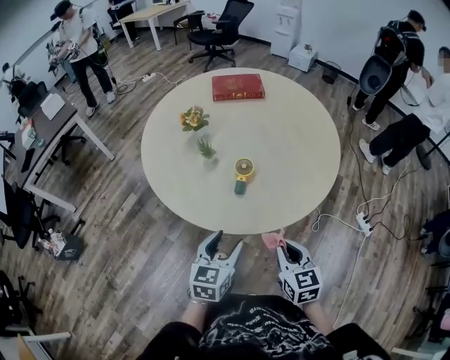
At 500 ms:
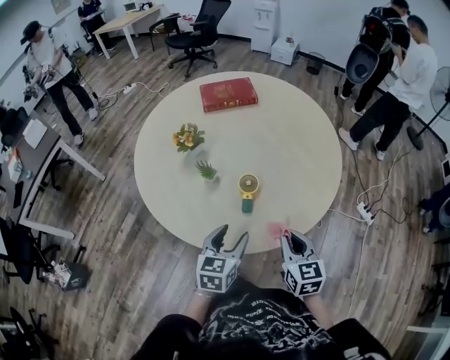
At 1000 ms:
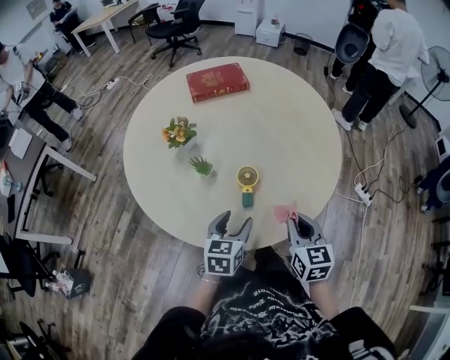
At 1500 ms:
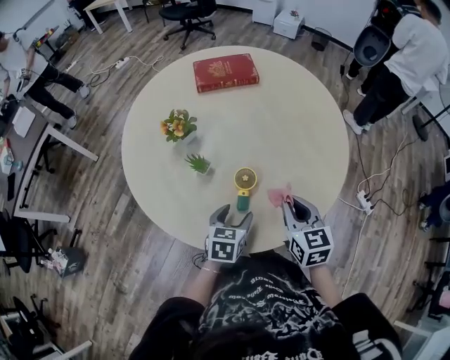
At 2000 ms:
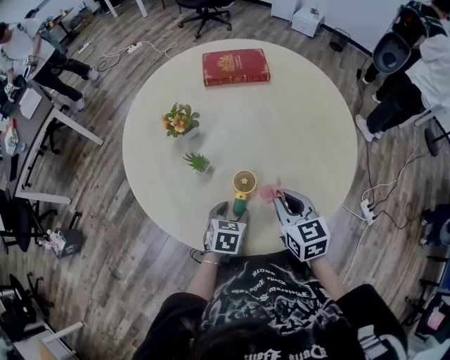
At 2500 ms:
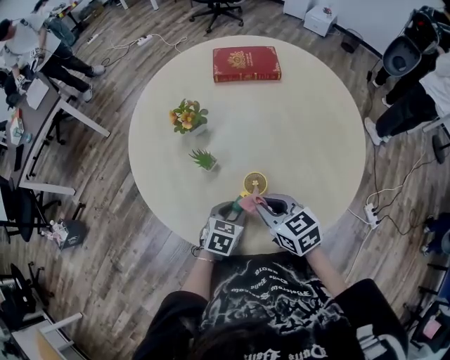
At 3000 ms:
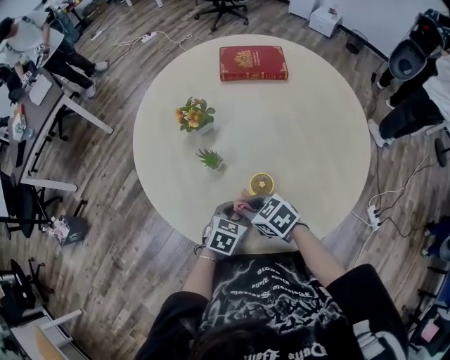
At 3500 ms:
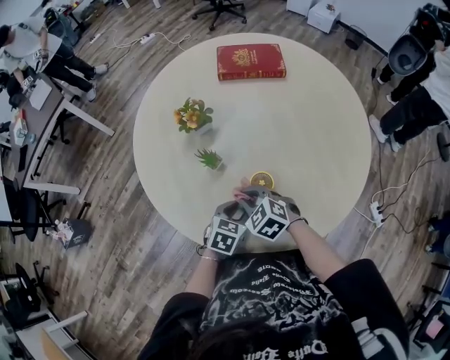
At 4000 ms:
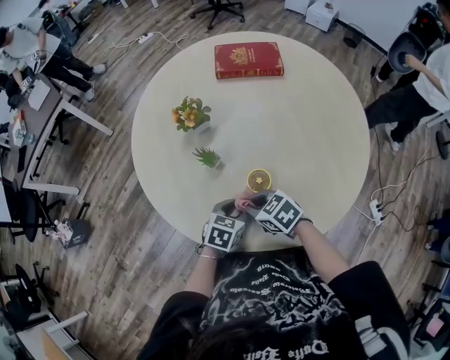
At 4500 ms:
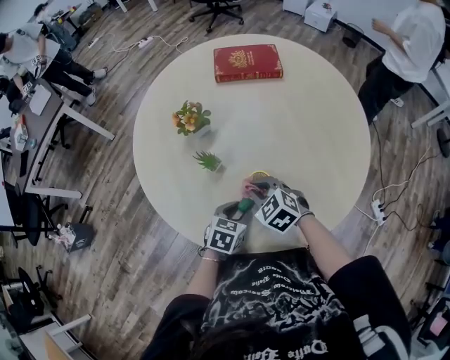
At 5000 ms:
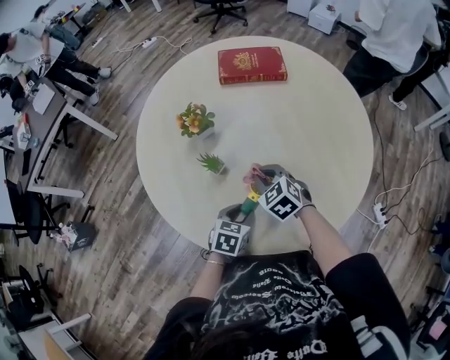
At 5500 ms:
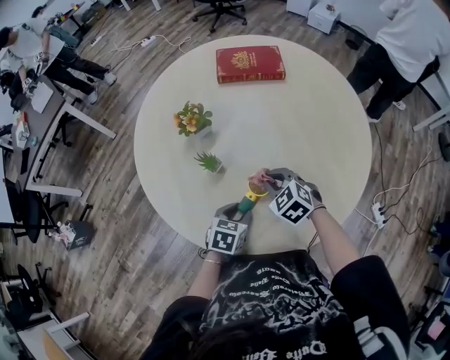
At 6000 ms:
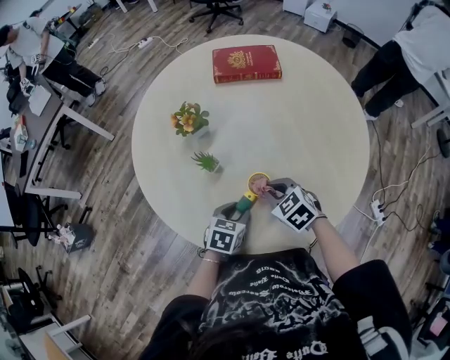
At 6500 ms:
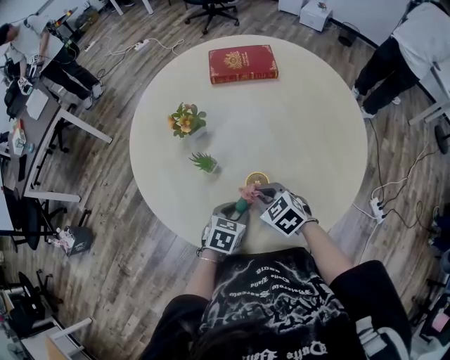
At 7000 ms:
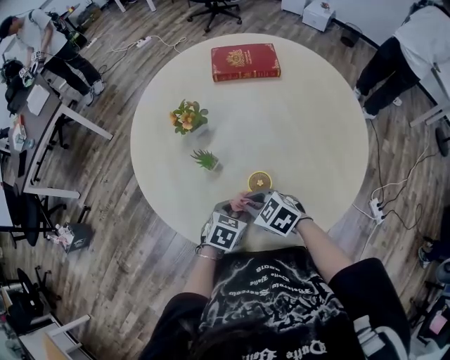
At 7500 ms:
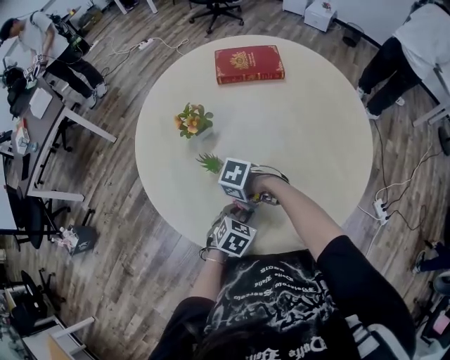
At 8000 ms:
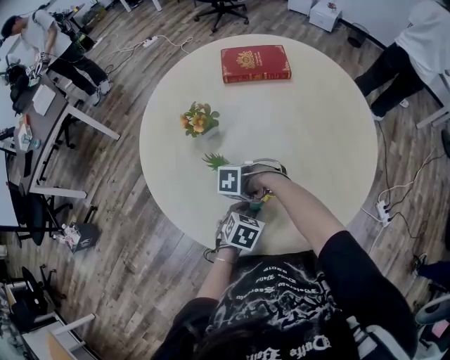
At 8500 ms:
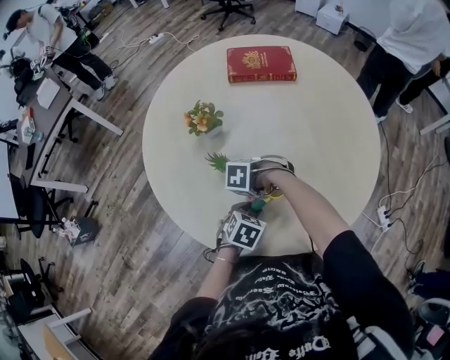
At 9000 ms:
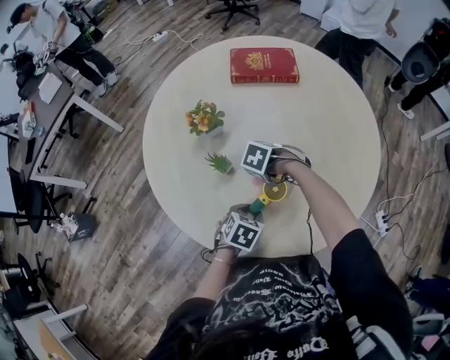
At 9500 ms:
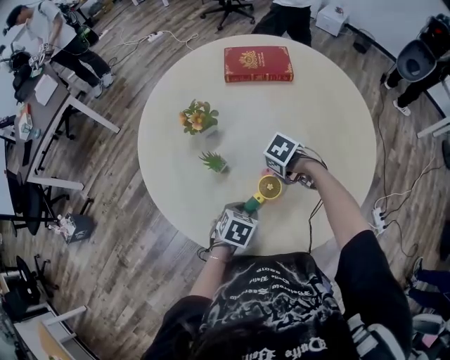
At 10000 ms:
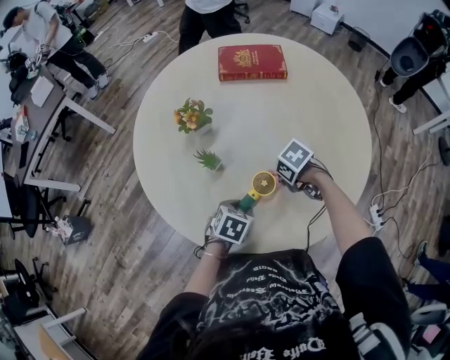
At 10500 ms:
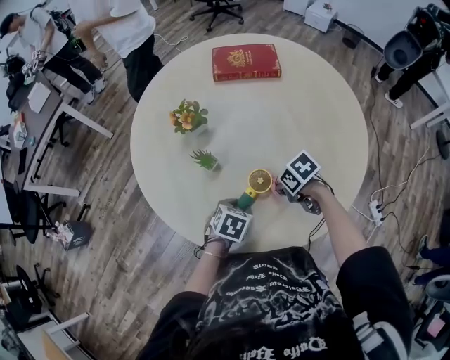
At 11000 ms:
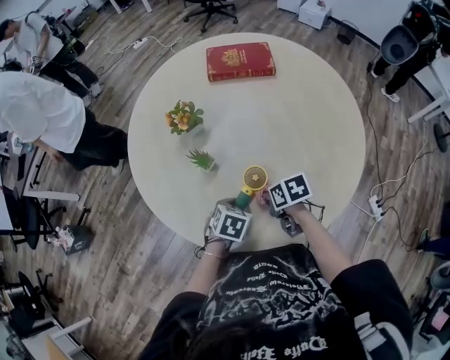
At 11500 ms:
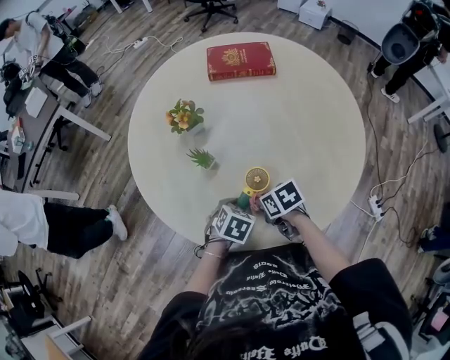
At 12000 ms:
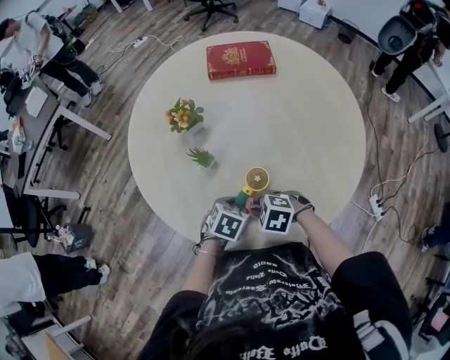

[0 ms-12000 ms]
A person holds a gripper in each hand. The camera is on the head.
0 ms to 2000 ms: The left gripper is displaced forward and downward by approximately 25 cm, and rotates about 30 degrees, while the right gripper is displaced forward by about 25 cm.
2000 ms to 4000 ms: The right gripper travels to the left and downward by some 15 cm, and changes its angle by about 40 degrees. The left gripper closes up.
4000 ms to 6000 ms: The right gripper shifts roughly 10 cm to the right.
6000 ms to 8000 ms: The right gripper shifts by some 10 cm, and rotates some 60 degrees.
8000 ms to 10000 ms: The right gripper moves about 15 cm, and changes its angle by some 40 degrees.
10000 ms to 12000 ms: The right gripper ends up about 15 cm from where it was, and changes its angle by about 40 degrees.

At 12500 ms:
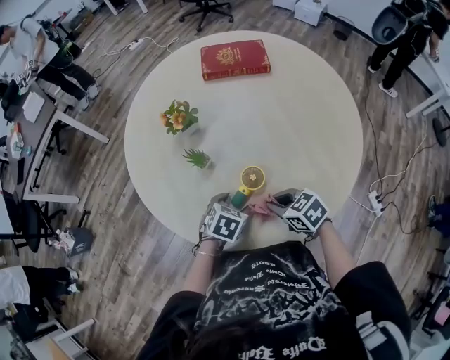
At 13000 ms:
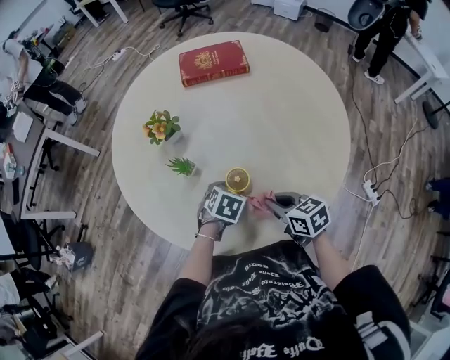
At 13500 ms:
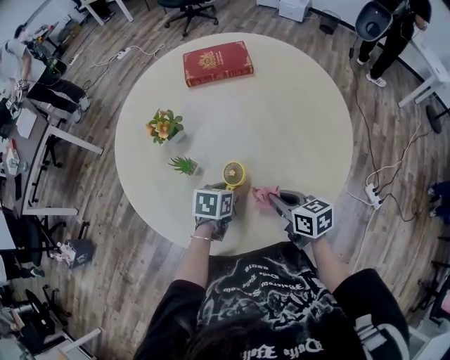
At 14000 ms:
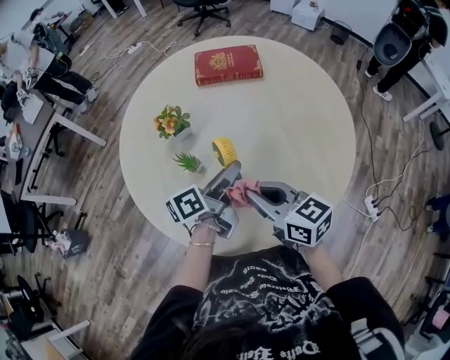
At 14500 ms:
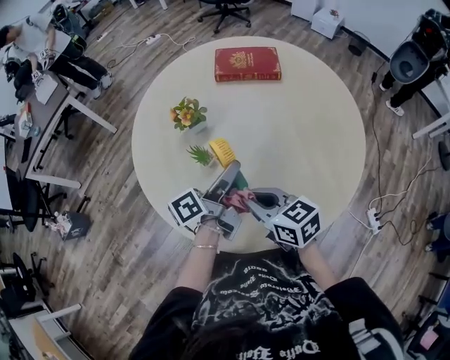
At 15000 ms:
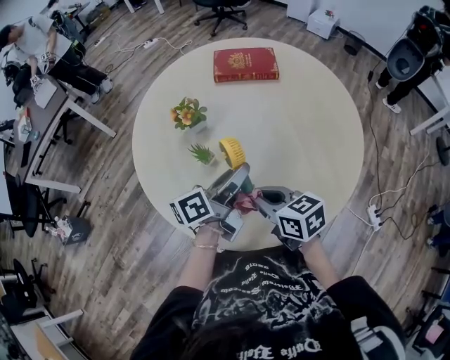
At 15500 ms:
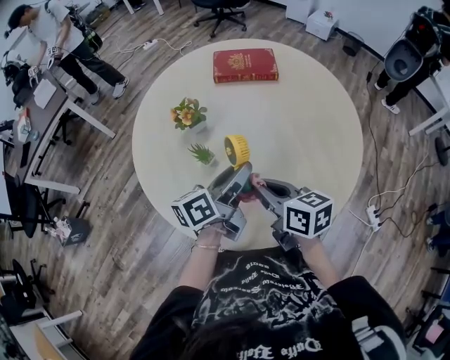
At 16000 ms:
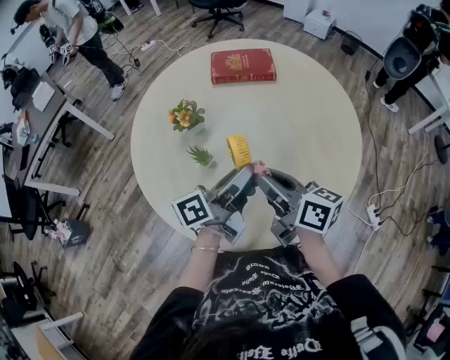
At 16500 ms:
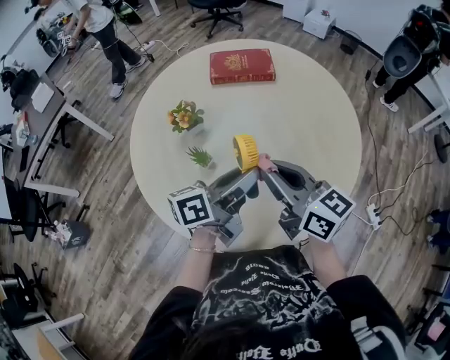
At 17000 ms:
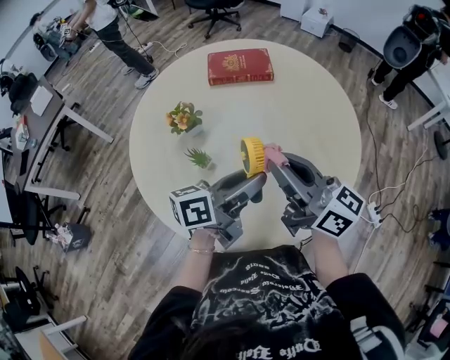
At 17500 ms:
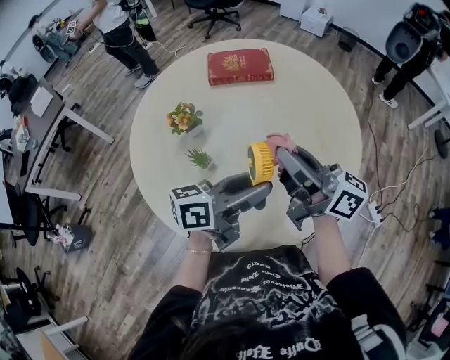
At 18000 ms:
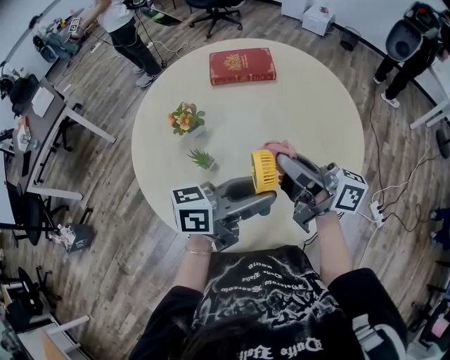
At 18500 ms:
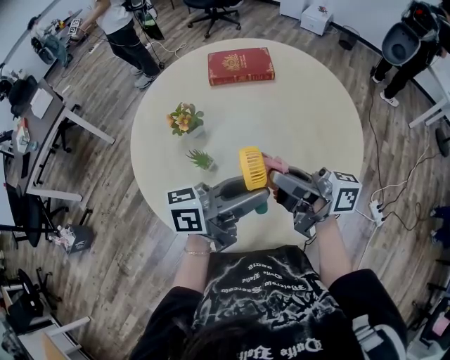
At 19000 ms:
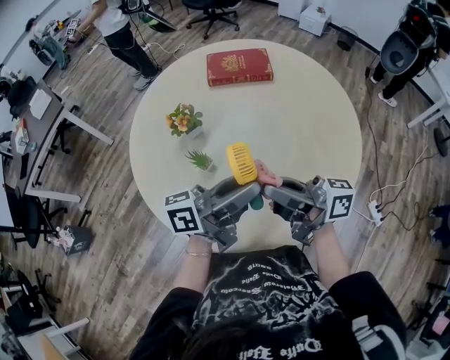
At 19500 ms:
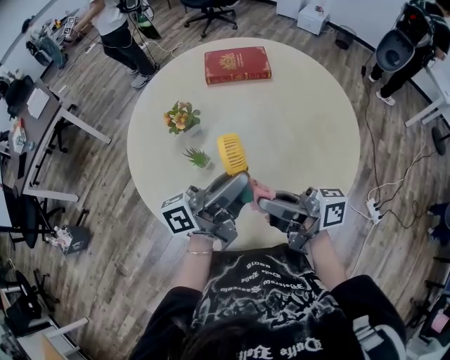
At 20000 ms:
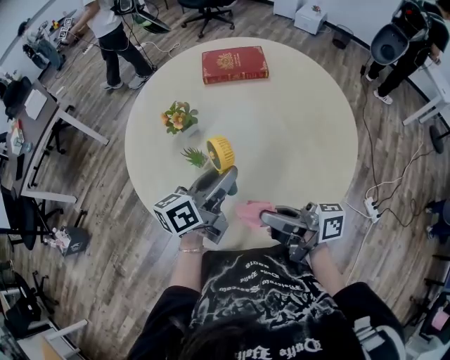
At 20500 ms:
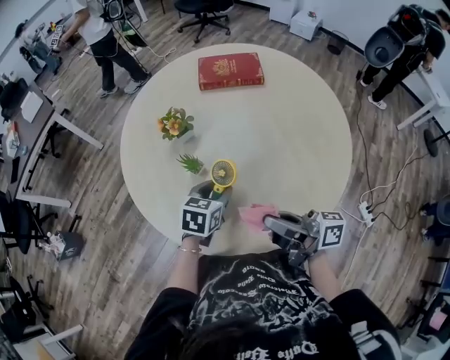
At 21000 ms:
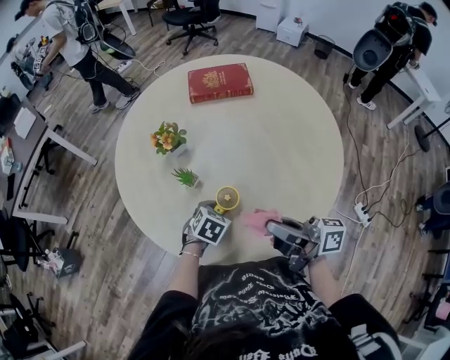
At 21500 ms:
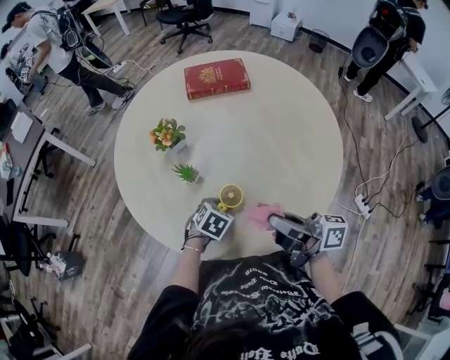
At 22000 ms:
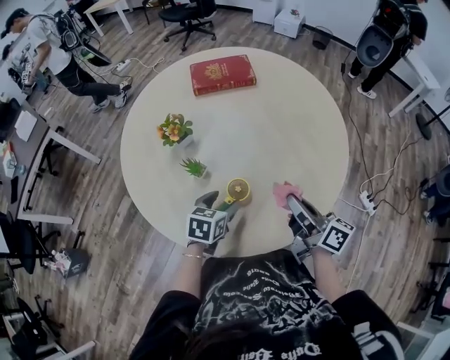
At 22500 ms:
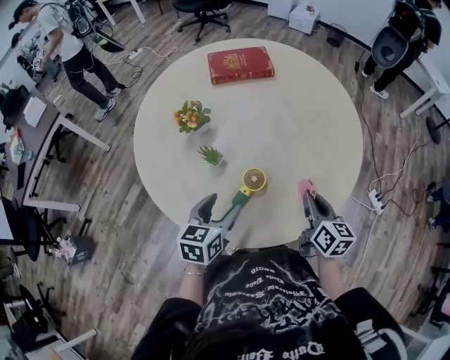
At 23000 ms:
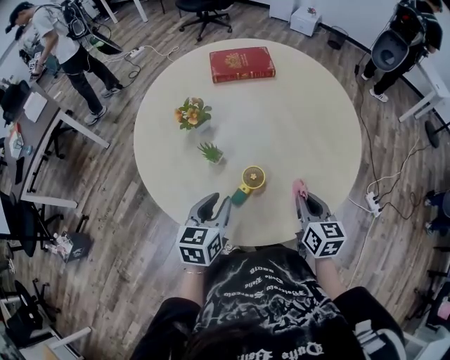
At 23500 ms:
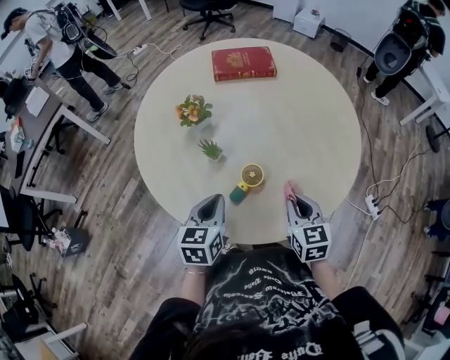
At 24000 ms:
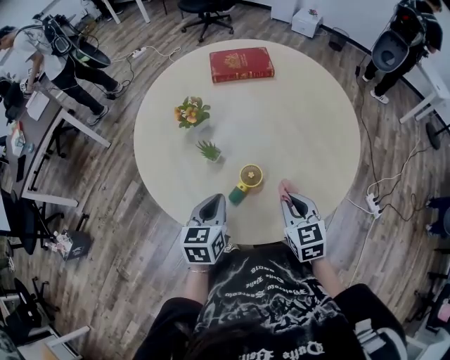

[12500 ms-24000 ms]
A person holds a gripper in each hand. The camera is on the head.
12500 ms to 14500 ms: The left gripper moves upward, approximately 20 cm, angles its fingers upward, by roughly 60 degrees, and closes its fingers. Meanwhile the right gripper shifts approximately 15 cm upward and to the left, and changes its angle by about 20 degrees.
14500 ms to 16500 ms: The left gripper changes place by approximately 5 cm, and changes its angle by approximately 30 degrees. Meanwhile the right gripper shifts approximately 10 cm upward, and rotates roughly 30 degrees.
16500 ms to 18500 ms: The left gripper ends up approximately 5 cm from where it was, and rotates roughly 20 degrees. The right gripper changes its angle by some 40 degrees.
18500 ms to 20000 ms: The left gripper moves roughly 10 cm, and swivels approximately 30 degrees. The right gripper changes place by roughly 10 cm.
20000 ms to 22000 ms: The right gripper travels to the right by about 10 cm, and turns by about 40 degrees. Meanwhile the left gripper is displaced downward by about 15 cm, and points its fingers about 40 degrees further downward.
22000 ms to 24000 ms: The right gripper shifts approximately 5 cm downward, and twists approximately 50 degrees counterclockwise, seen from behind; the left gripper shifts roughly 10 cm to the left, upward and backward, turns by roughly 20 degrees, and closes.

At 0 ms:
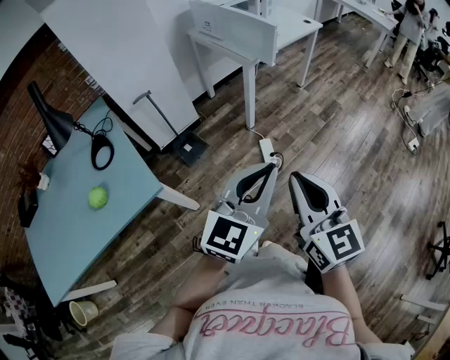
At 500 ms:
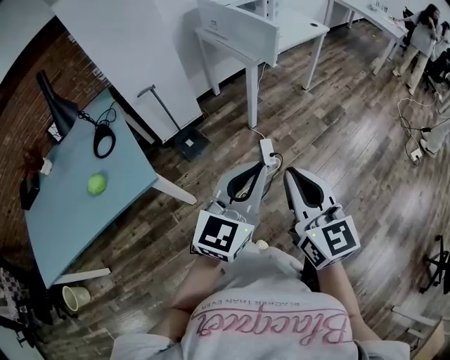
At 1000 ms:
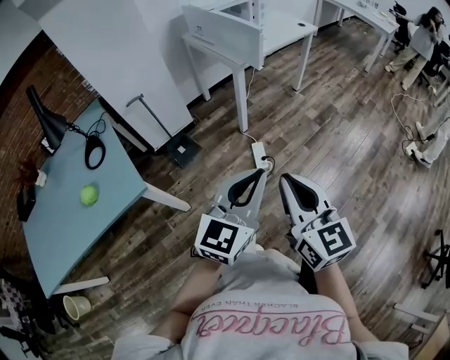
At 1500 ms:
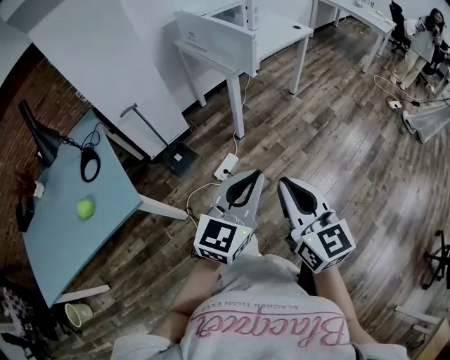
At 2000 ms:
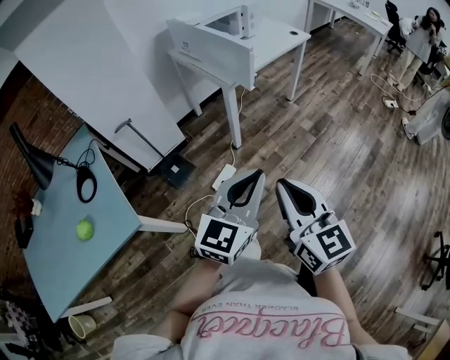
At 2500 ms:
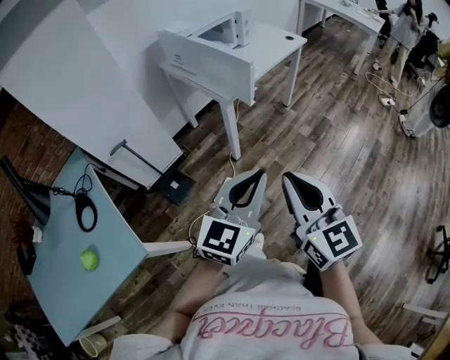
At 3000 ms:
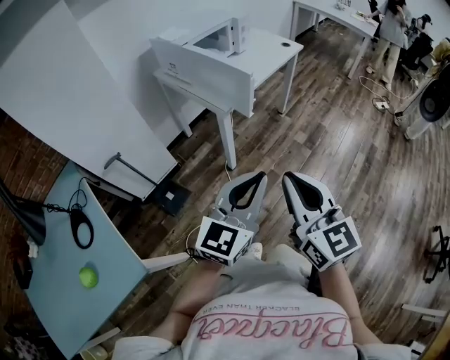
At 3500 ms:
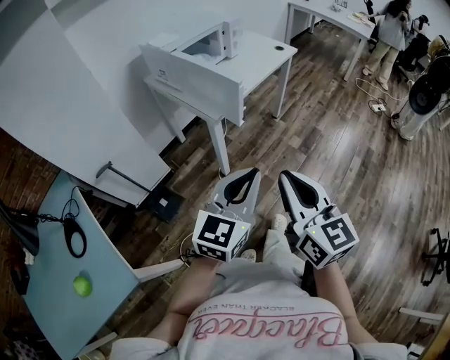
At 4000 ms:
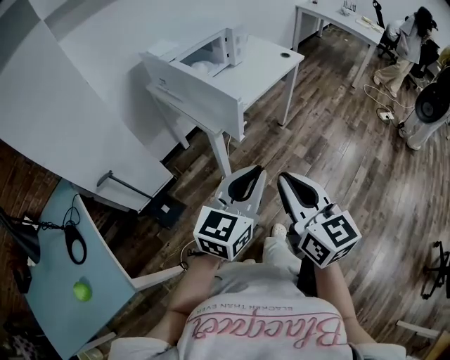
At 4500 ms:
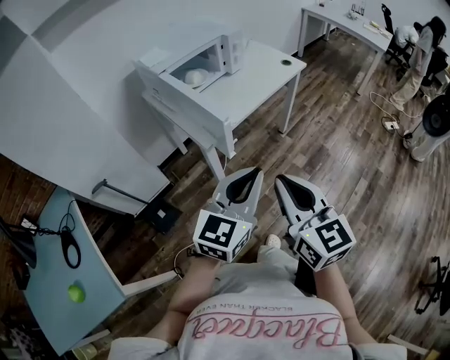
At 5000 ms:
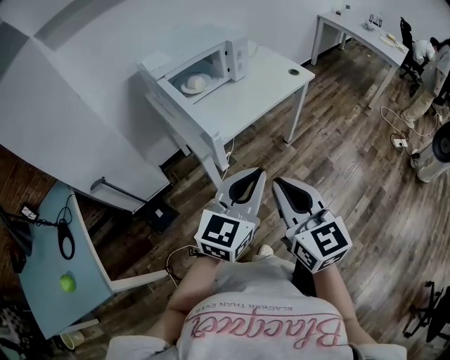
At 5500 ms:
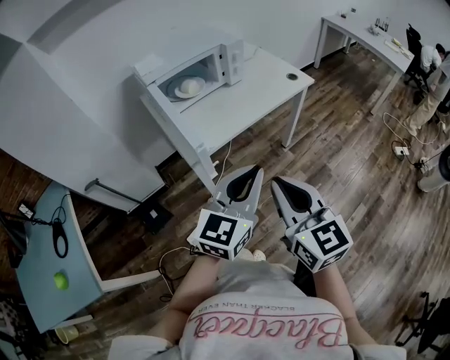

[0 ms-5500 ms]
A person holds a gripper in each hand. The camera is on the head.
0 ms to 2000 ms: Both grippers move forward and to the right, roughly 15 cm.
2000 ms to 3500 ms: The grippers both shift forward by some 20 cm.
3500 ms to 5500 ms: Both grippers travel together forward and to the right, about 30 cm.
